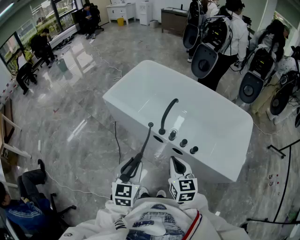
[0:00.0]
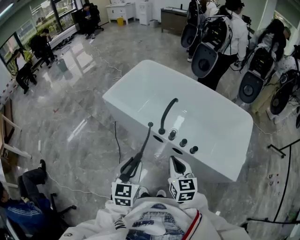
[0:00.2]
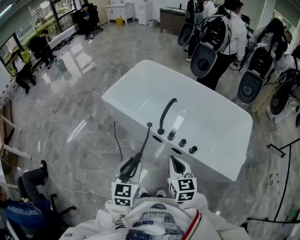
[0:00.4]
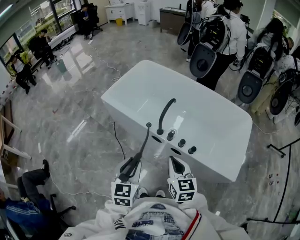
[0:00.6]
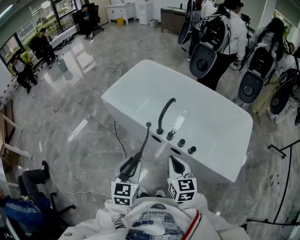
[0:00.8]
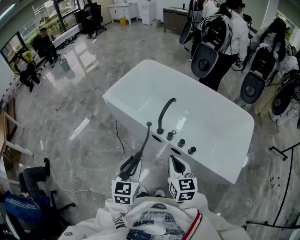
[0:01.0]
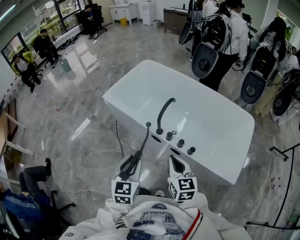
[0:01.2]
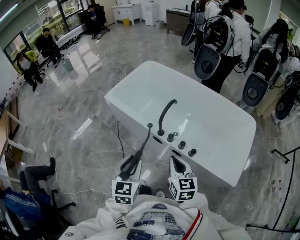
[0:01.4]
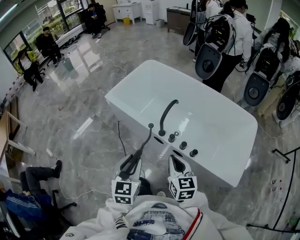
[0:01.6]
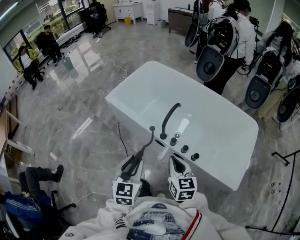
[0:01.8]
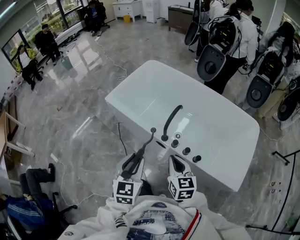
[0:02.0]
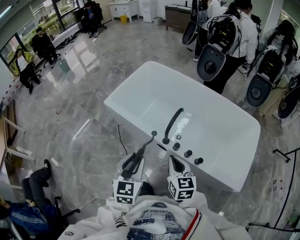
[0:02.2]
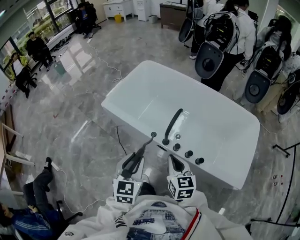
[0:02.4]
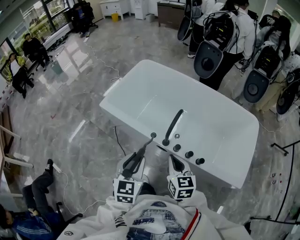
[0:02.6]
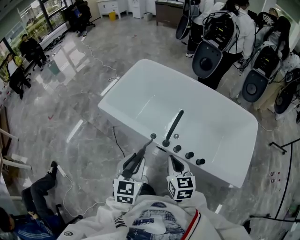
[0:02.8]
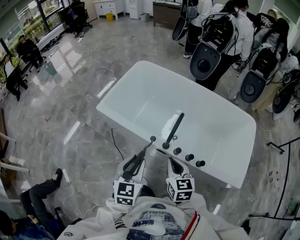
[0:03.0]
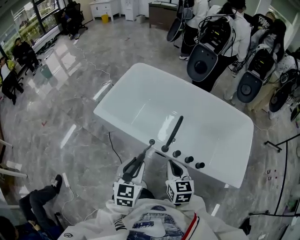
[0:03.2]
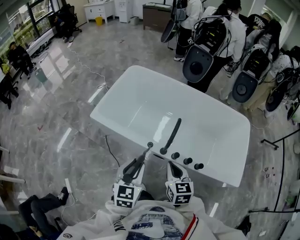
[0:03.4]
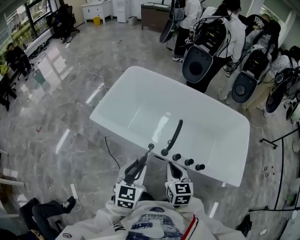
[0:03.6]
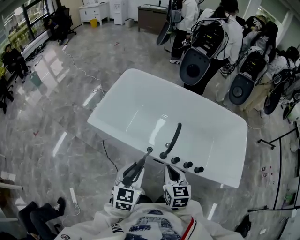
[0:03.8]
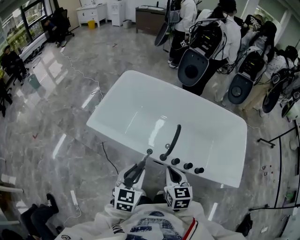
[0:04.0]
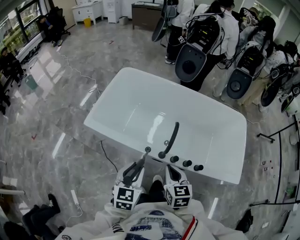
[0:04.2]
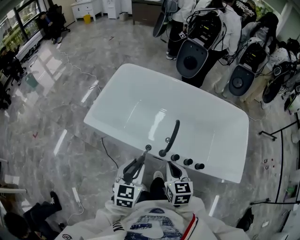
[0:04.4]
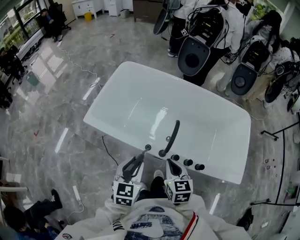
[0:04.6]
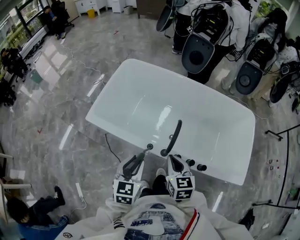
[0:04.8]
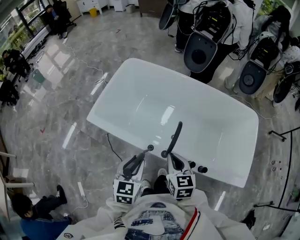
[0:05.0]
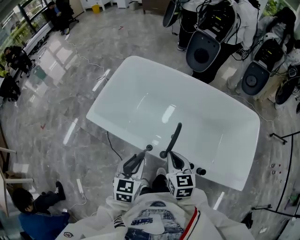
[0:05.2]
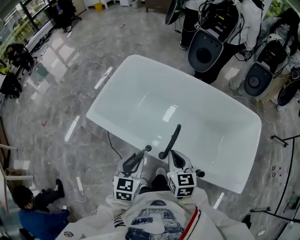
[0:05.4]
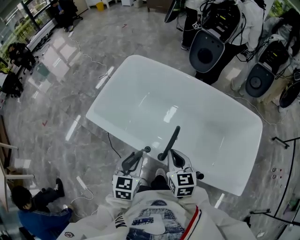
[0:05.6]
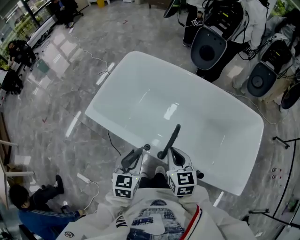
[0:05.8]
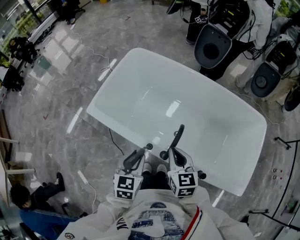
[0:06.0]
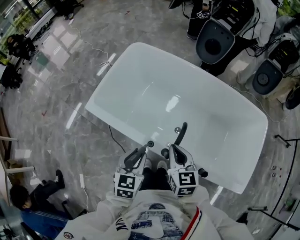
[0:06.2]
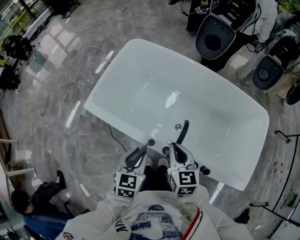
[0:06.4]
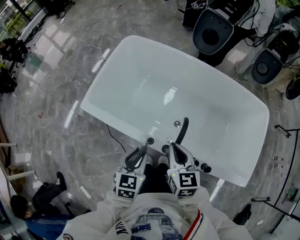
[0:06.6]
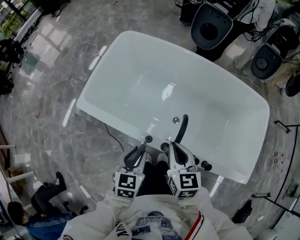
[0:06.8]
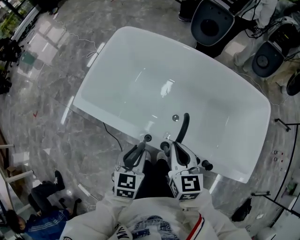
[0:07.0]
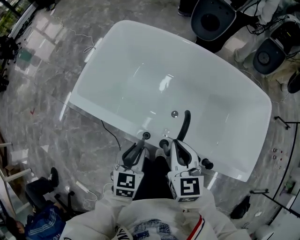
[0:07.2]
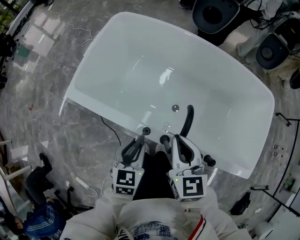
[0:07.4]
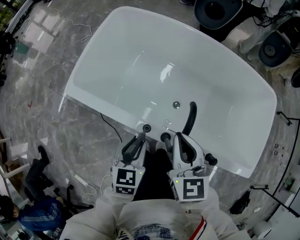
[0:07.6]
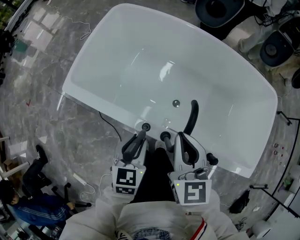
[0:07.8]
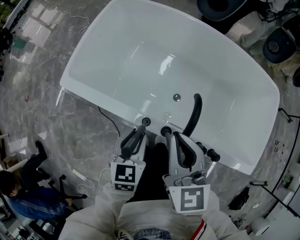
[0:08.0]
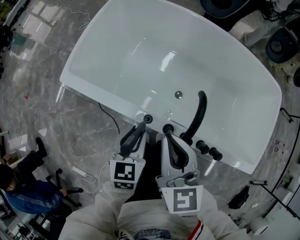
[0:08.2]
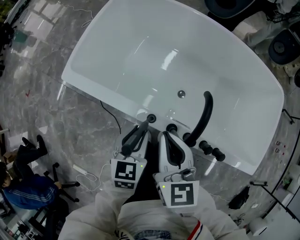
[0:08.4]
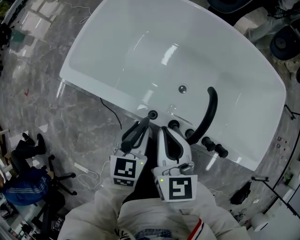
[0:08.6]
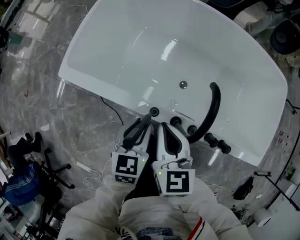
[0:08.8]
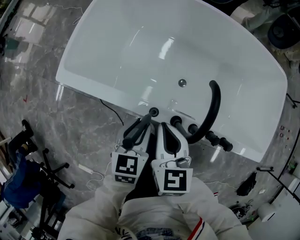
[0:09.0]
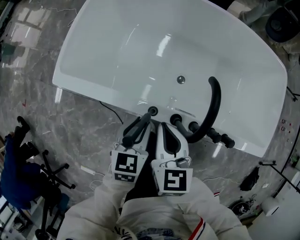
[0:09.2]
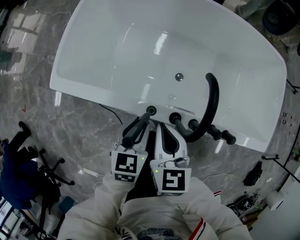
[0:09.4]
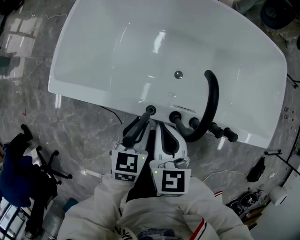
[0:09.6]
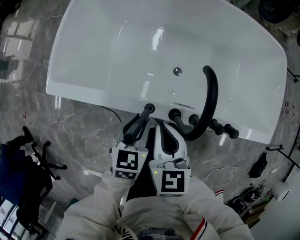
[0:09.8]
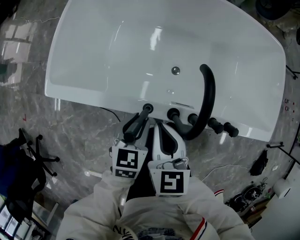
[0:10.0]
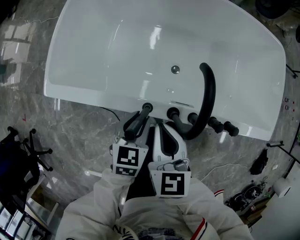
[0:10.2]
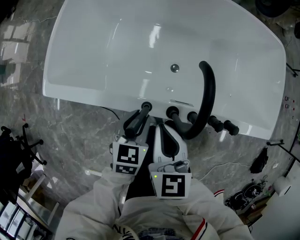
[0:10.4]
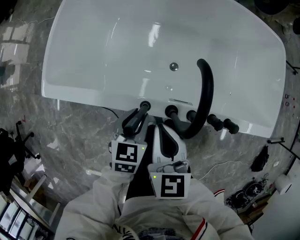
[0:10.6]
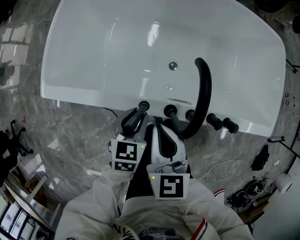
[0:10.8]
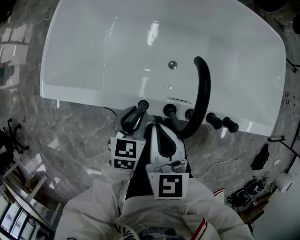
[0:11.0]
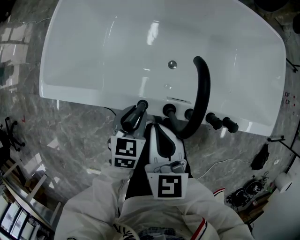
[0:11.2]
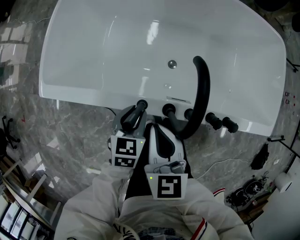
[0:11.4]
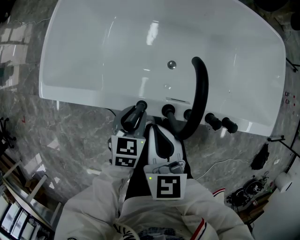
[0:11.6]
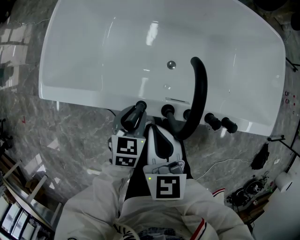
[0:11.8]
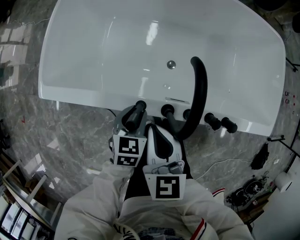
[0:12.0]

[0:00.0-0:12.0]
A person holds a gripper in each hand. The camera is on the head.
0:00.0 to 0:01.6: The grippers make only small movements.
0:01.6 to 0:03.0: The left gripper heads forward, covering roughly 15 cm. Meanwhile the right gripper travels forward and to the left by roughly 15 cm.
0:03.0 to 0:04.4: The right gripper moves some 5 cm; the left gripper is displaced forward by about 5 cm.
0:04.4 to 0:06.0: The left gripper travels forward and downward by roughly 10 cm; the right gripper heads forward, covering some 15 cm.
0:06.0 to 0:07.6: The left gripper moves downward, about 10 cm.
0:07.6 to 0:09.0: The left gripper heads downward, covering about 5 cm; the right gripper is displaced downward and to the left by some 10 cm.
0:09.0 to 0:10.4: The left gripper goes roughly 5 cm downward.
0:10.4 to 0:12.0: The grippers stay close to where they were, moving slightly.

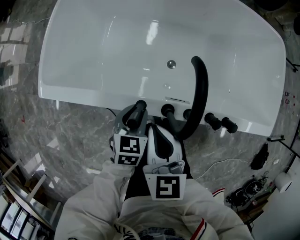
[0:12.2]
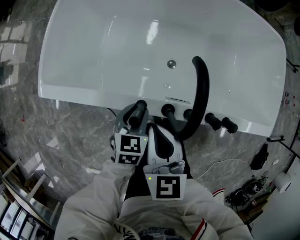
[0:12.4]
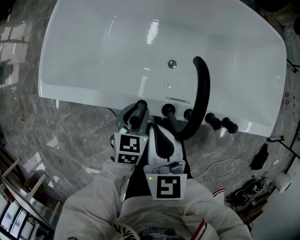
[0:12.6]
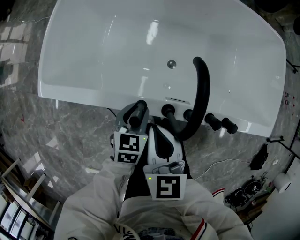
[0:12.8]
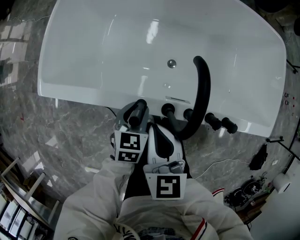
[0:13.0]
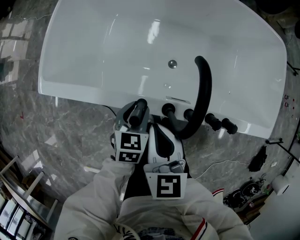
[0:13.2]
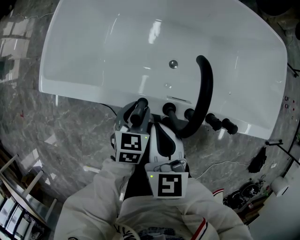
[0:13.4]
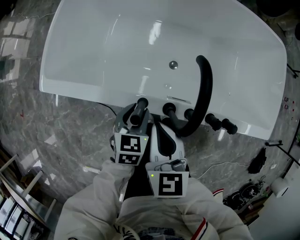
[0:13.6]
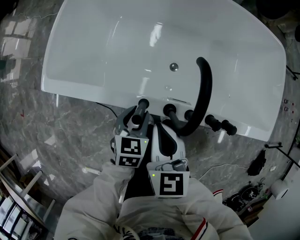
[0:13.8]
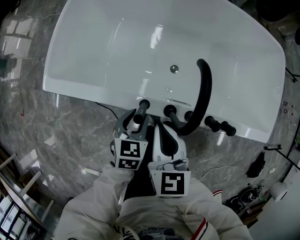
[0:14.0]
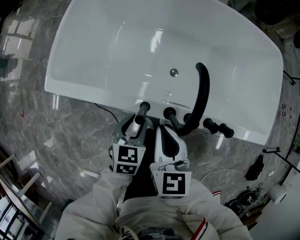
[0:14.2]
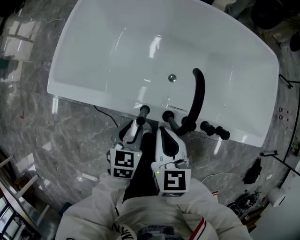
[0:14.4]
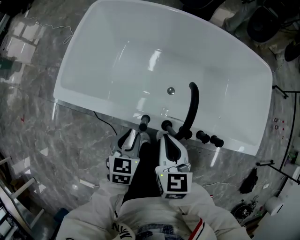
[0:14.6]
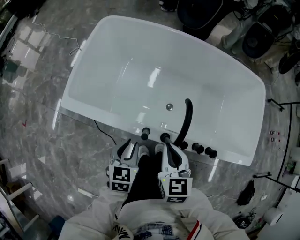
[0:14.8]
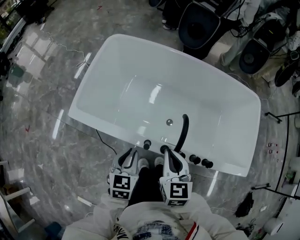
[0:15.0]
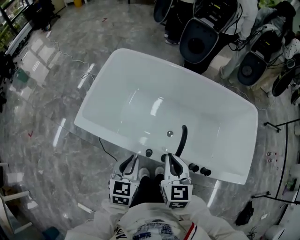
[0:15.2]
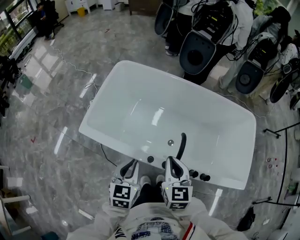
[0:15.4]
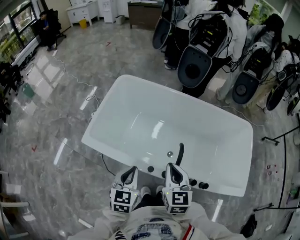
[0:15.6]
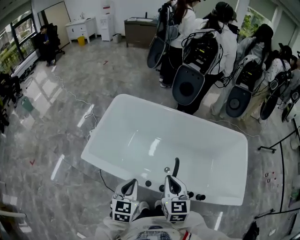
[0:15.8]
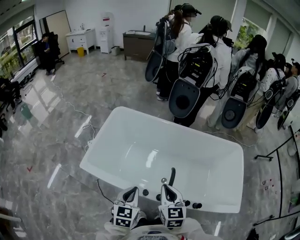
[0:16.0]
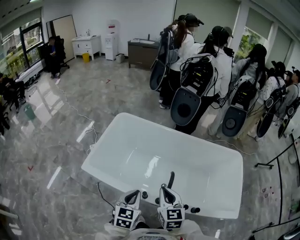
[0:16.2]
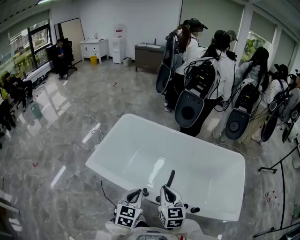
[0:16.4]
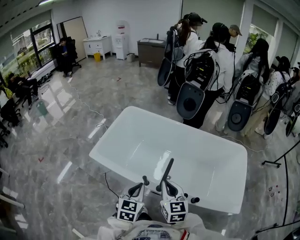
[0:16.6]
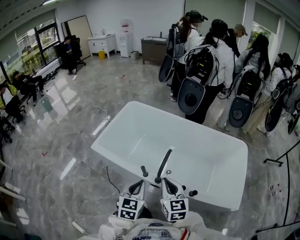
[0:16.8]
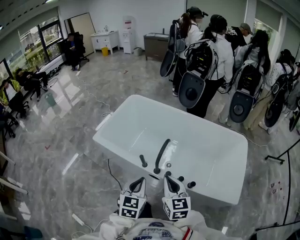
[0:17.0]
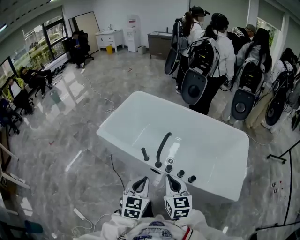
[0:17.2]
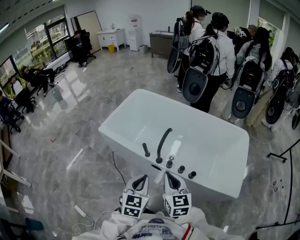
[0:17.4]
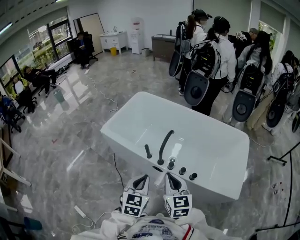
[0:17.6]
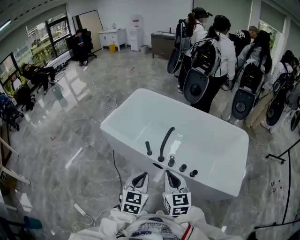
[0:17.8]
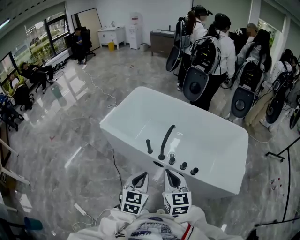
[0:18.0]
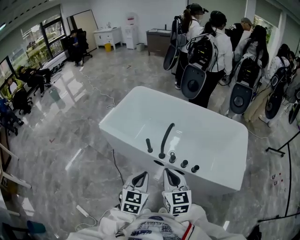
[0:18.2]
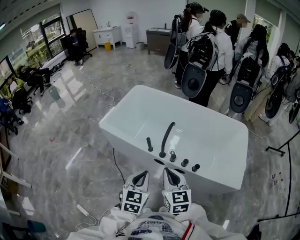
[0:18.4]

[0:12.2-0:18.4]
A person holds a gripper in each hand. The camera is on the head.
0:12.2 to 0:13.8: The grippers stay close to where they were, moving slightly.
0:13.8 to 0:15.4: The left gripper travels upward by about 25 cm, swivels about 20 degrees, and closes; the right gripper is displaced upward by roughly 15 cm.
0:15.4 to 0:16.8: The right gripper travels backward, upward and to the right by approximately 15 cm. The left gripper is displaced backward, to the right and upward by about 20 cm.
0:16.8 to 0:18.4: Both grippers move backward, some 15 cm.

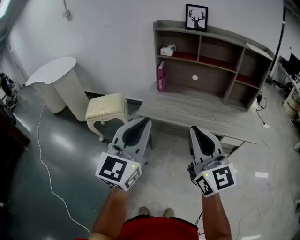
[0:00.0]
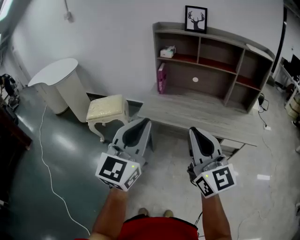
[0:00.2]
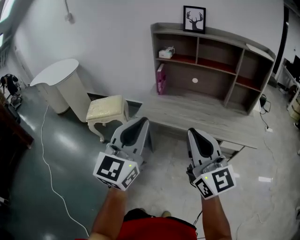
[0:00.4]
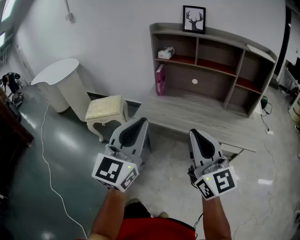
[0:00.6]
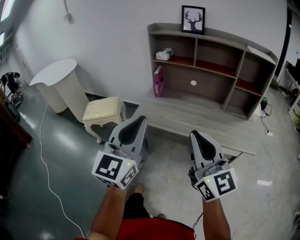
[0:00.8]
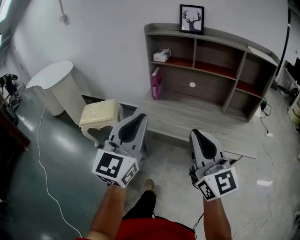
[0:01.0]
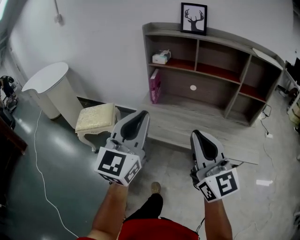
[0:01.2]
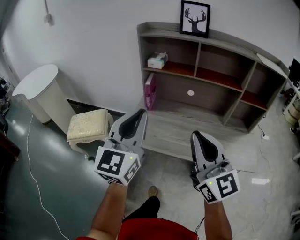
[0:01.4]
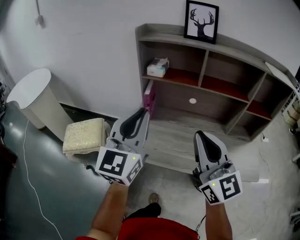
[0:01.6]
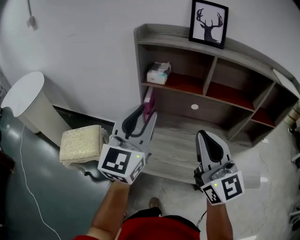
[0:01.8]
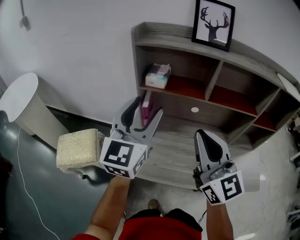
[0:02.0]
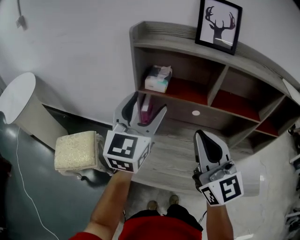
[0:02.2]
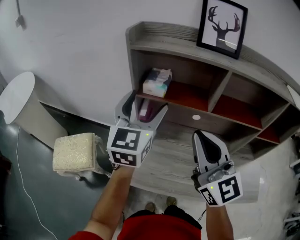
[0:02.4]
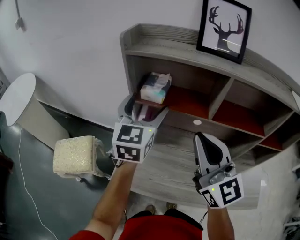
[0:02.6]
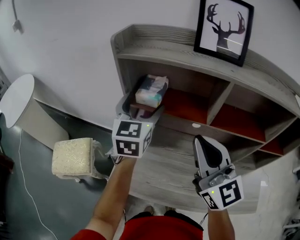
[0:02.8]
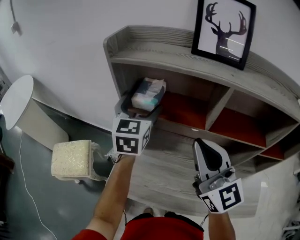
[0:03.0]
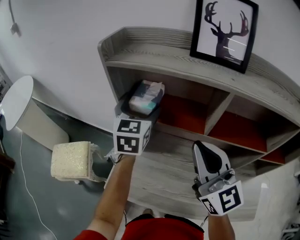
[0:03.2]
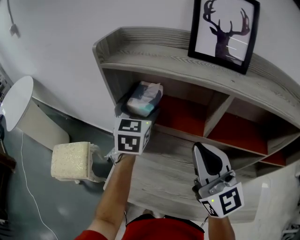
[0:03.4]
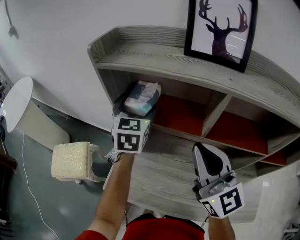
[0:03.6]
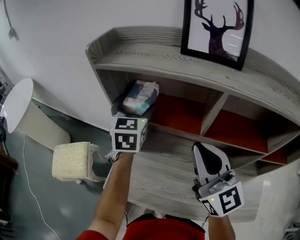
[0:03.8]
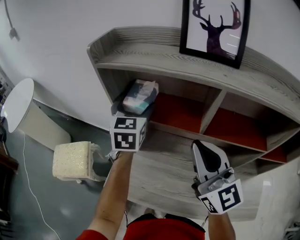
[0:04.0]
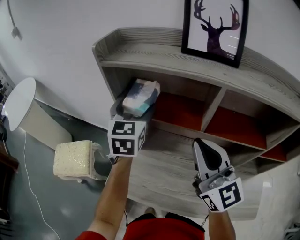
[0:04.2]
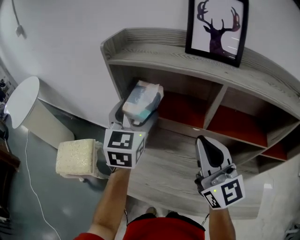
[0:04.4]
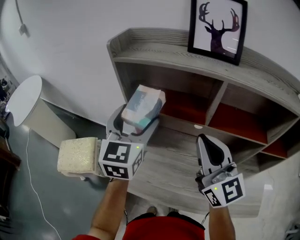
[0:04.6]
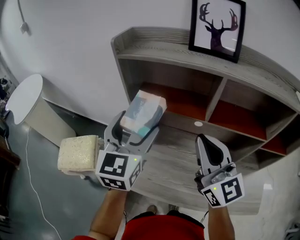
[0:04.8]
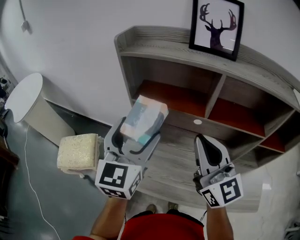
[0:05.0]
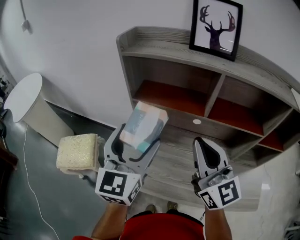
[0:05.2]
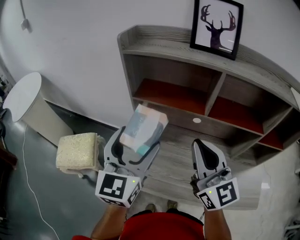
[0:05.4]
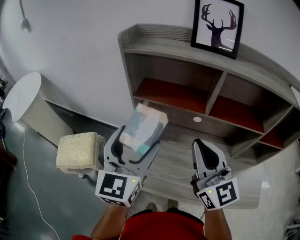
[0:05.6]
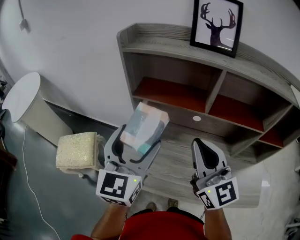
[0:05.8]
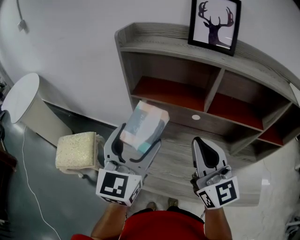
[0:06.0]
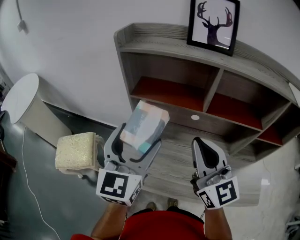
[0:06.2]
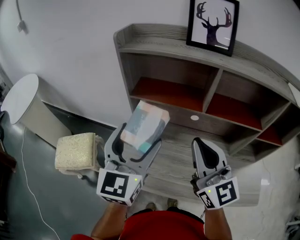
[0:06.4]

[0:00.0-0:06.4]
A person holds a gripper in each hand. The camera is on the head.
0:00.0 to 0:01.6: Both grippers travel together forward, roughly 30 cm.
0:01.6 to 0:03.2: Both grippers travel together forward, about 30 cm. The left gripper rotates some 30 degrees, and opens up.
0:03.2 to 0:04.8: The left gripper travels backward by roughly 15 cm.
0:04.8 to 0:06.4: The left gripper travels backward by about 5 cm.
